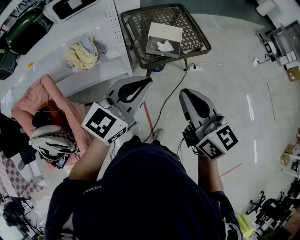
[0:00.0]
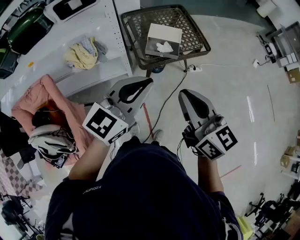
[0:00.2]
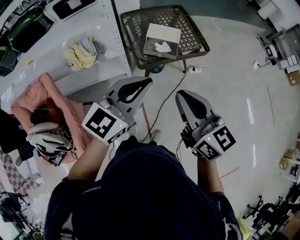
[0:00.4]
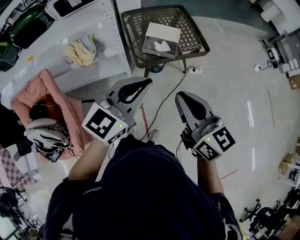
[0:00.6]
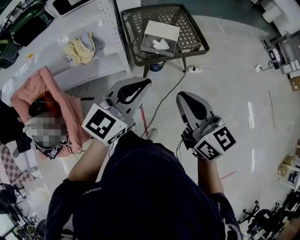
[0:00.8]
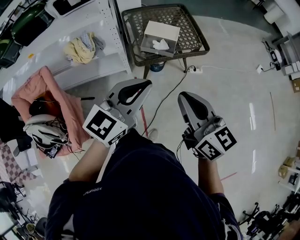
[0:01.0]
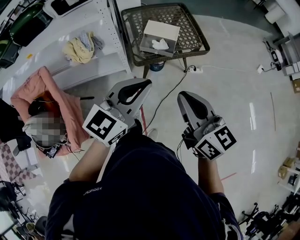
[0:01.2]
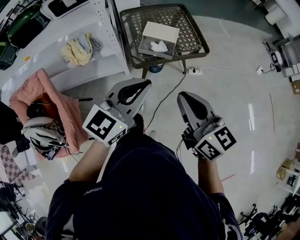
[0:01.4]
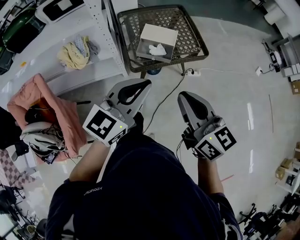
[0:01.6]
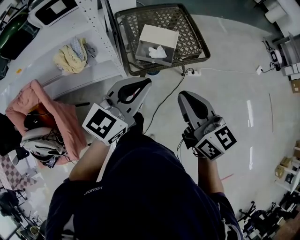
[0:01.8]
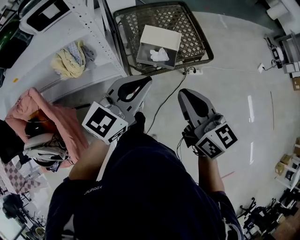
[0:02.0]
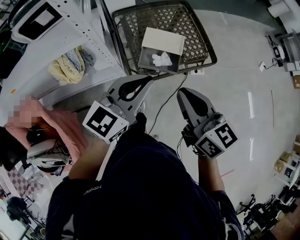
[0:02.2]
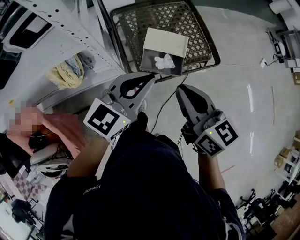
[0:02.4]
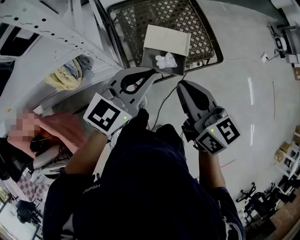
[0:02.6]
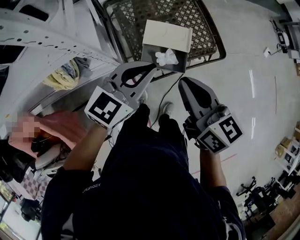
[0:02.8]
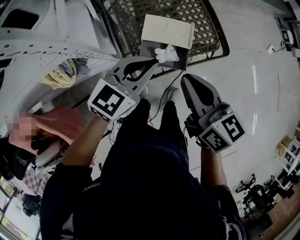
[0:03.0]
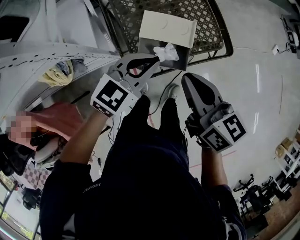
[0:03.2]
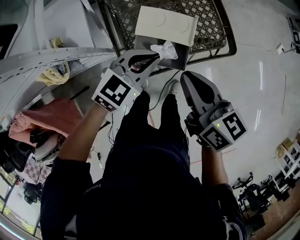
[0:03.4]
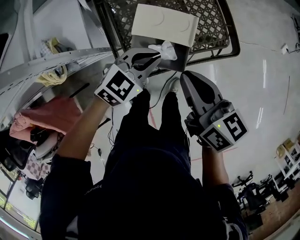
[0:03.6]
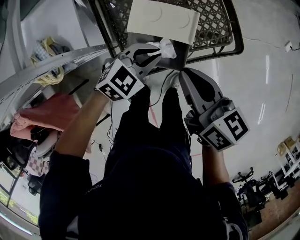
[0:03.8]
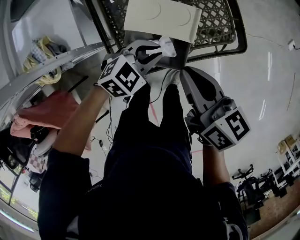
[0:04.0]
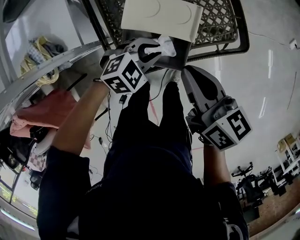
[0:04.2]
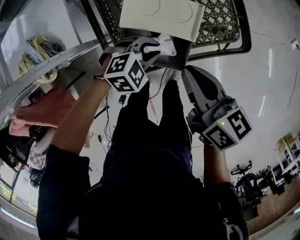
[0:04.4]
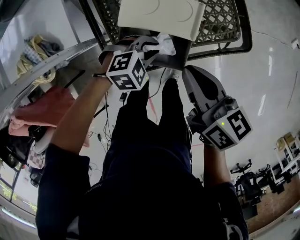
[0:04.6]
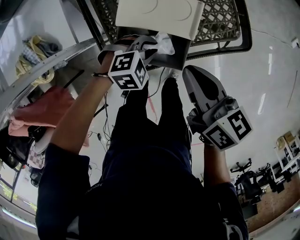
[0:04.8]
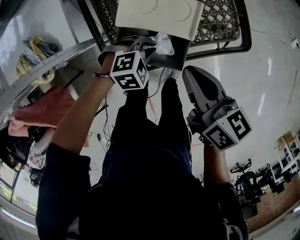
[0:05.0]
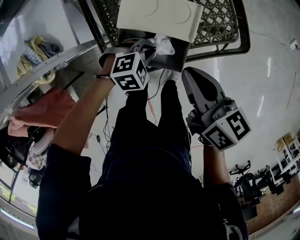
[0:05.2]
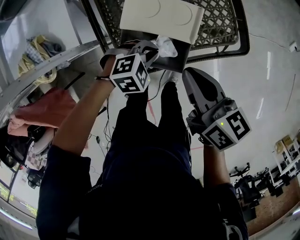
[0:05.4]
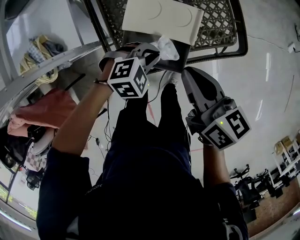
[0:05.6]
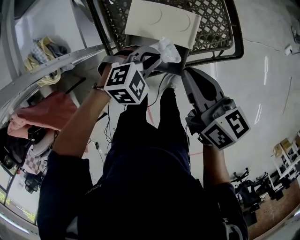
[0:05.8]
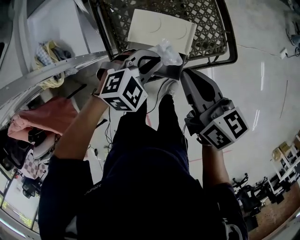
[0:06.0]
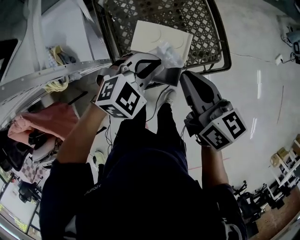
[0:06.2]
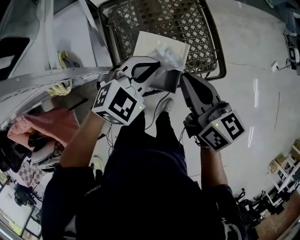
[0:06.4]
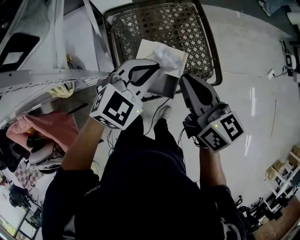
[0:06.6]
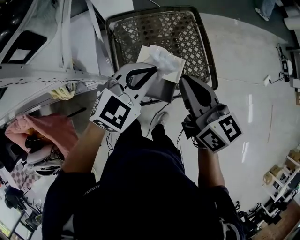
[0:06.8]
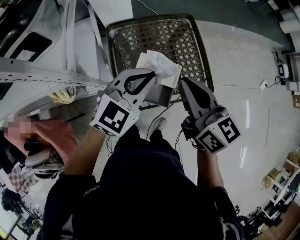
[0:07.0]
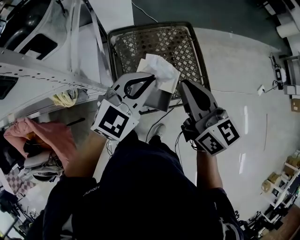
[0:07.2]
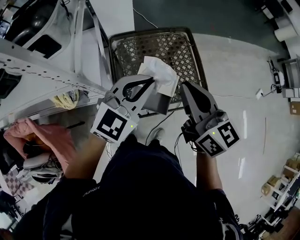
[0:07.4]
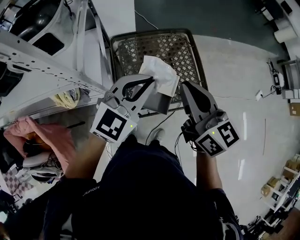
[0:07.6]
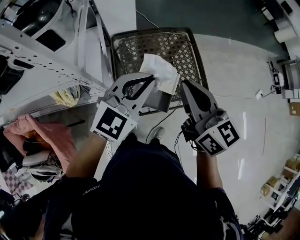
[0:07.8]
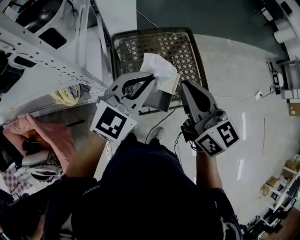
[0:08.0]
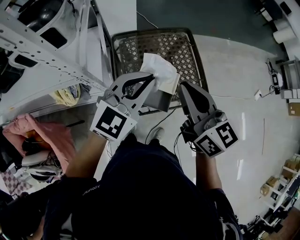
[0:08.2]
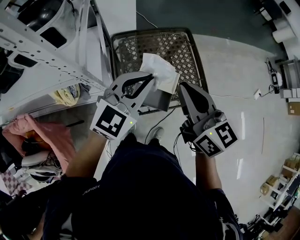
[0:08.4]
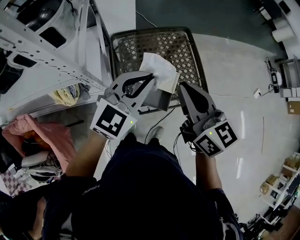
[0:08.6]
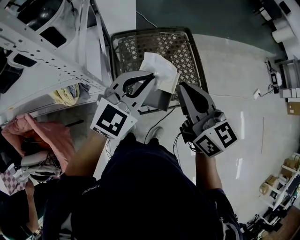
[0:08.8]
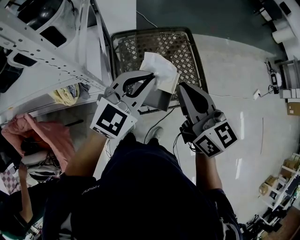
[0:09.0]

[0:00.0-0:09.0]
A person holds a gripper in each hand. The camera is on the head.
0:00.0 to 0:01.6: The grippers both shift to the right and forward by some 10 cm.
0:01.6 to 0:03.0: The left gripper heads forward and downward, covering roughly 35 cm. The right gripper shifts about 30 cm forward.
0:03.0 to 0:04.4: The right gripper shifts about 20 cm downward and forward. The left gripper is displaced downward by roughly 25 cm, and points its fingers approximately 40 degrees further downward.
0:04.4 to 0:06.0: The left gripper is displaced upward by some 10 cm, while the right gripper goes approximately 5 cm upward.
0:06.0 to 0:07.6: Both grippers travel together upward, approximately 25 cm. The left gripper points its fingers approximately 30 degrees further upward. Meanwhile the right gripper swivels some 30 degrees.
0:07.6 to 0:09.0: The grippers move only a little.

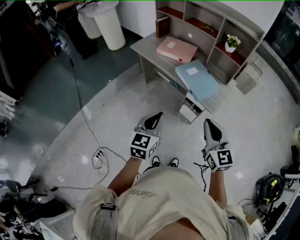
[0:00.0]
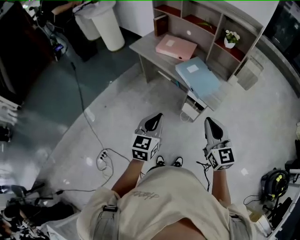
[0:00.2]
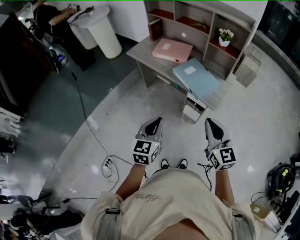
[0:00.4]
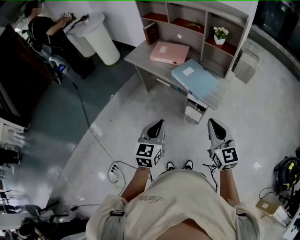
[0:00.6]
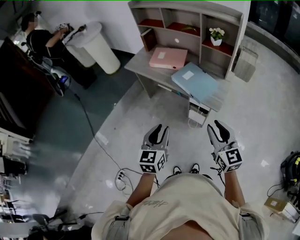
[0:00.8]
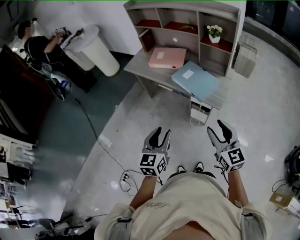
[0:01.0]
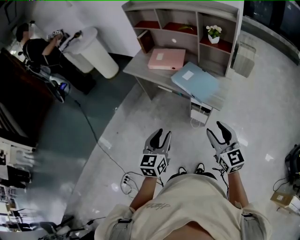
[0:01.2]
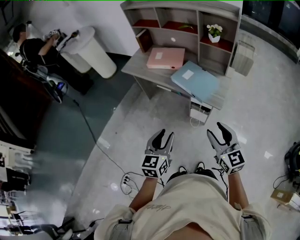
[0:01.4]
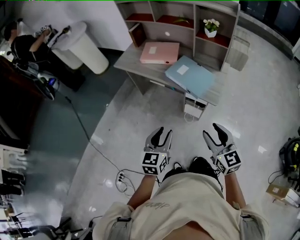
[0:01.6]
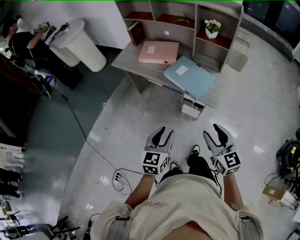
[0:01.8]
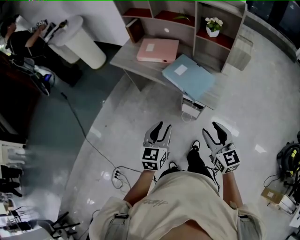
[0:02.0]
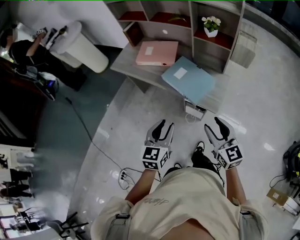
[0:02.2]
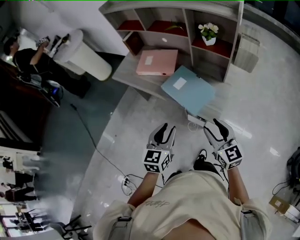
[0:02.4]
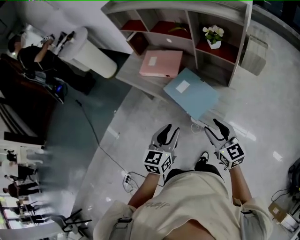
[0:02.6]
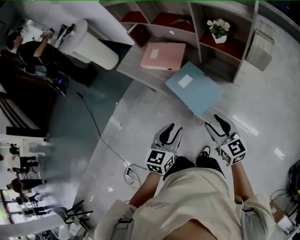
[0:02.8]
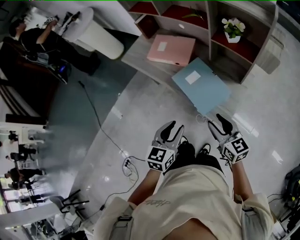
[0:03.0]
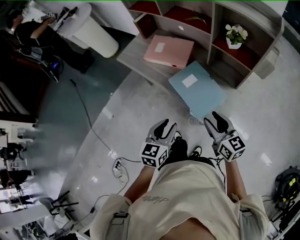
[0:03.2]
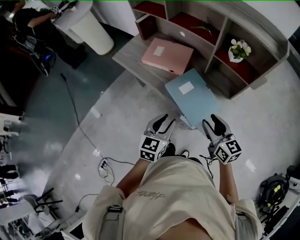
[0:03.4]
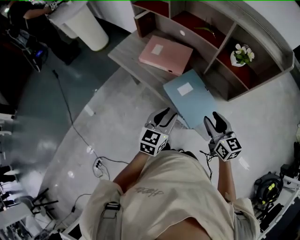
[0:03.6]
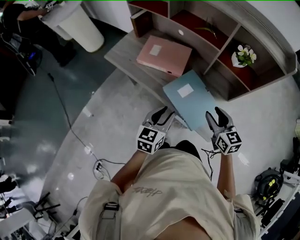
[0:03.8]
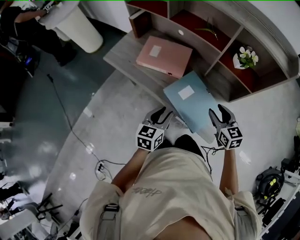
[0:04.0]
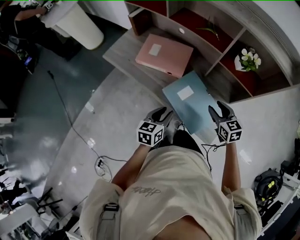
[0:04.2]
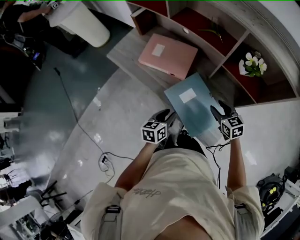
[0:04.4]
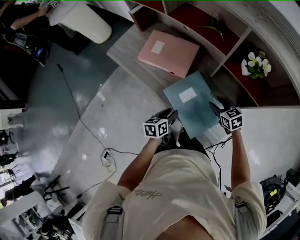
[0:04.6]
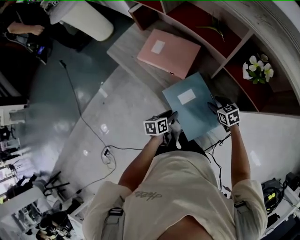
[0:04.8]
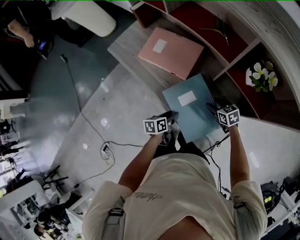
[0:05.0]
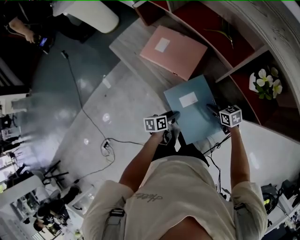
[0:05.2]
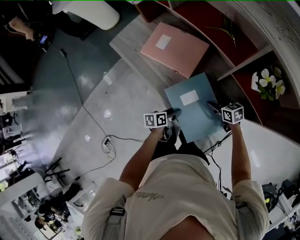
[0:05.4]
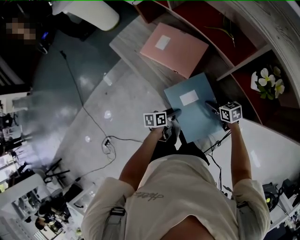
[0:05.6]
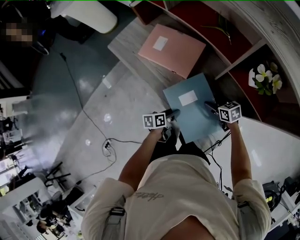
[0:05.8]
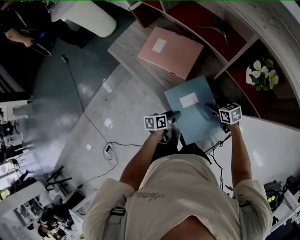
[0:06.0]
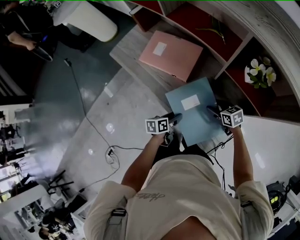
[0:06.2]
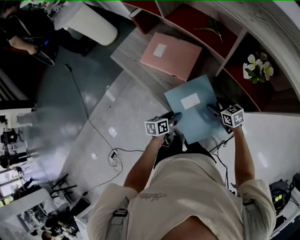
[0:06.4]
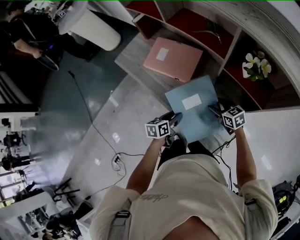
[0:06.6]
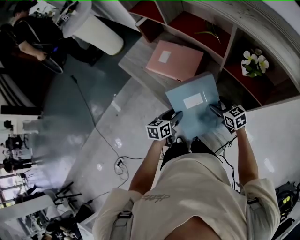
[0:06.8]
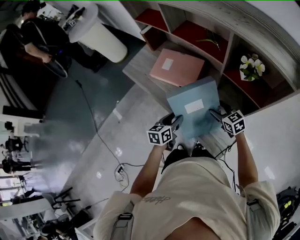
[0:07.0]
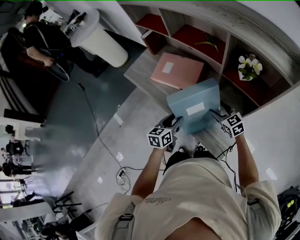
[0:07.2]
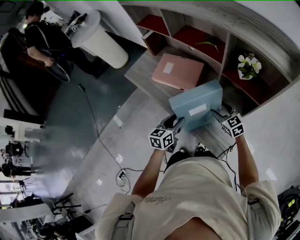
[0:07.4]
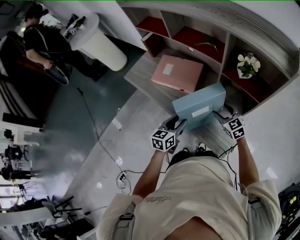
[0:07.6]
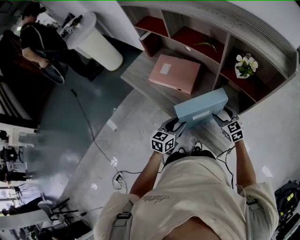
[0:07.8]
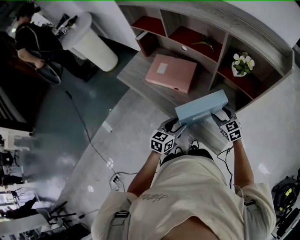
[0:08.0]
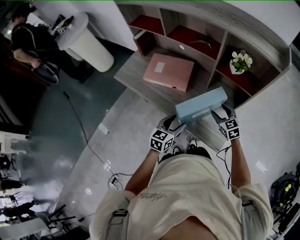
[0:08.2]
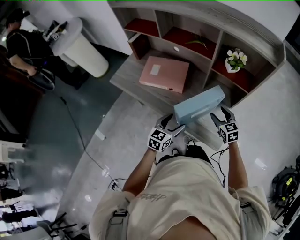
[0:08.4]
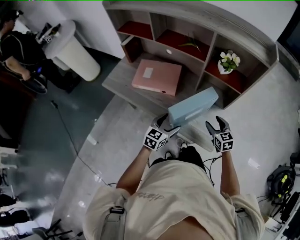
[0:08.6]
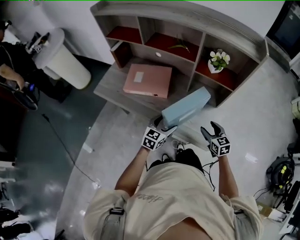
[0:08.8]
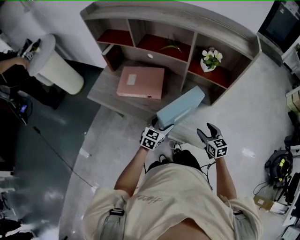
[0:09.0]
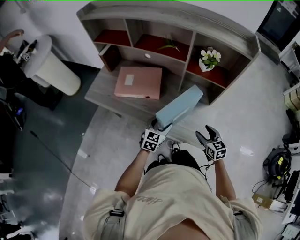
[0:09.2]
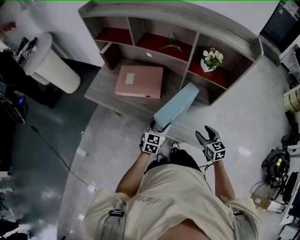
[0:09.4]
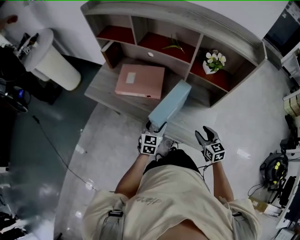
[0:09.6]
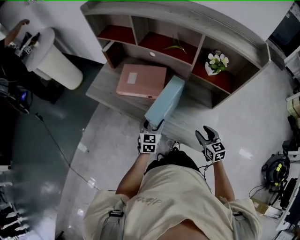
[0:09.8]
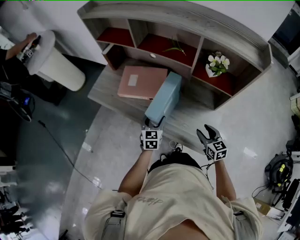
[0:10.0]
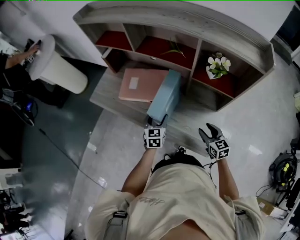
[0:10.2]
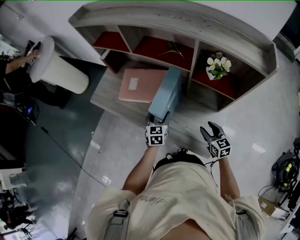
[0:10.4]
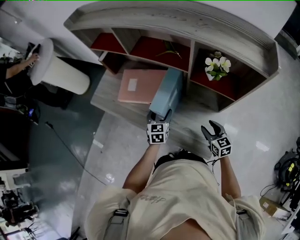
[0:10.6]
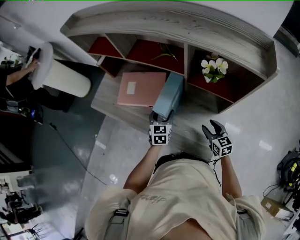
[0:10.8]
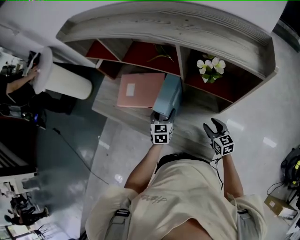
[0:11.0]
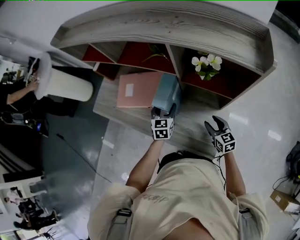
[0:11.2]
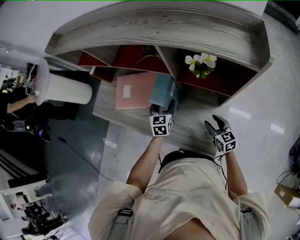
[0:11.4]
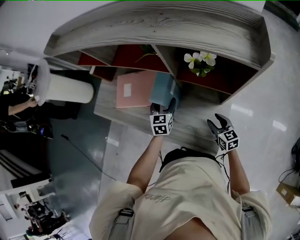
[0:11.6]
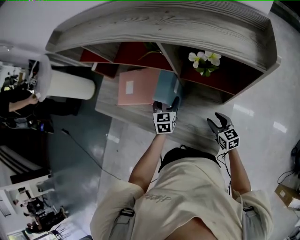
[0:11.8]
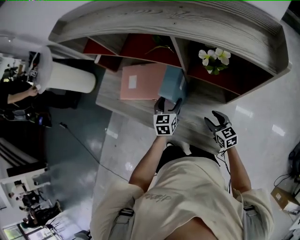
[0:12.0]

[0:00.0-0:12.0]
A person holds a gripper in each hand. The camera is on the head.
0:00.0 to 0:01.6: The grippers both shift downward by some 5 cm. The right gripper opens up. The left gripper opens.
0:01.6 to 0:03.0: Both grippers travel together forward and to the right, about 25 cm. The right gripper turns by roughly 20 degrees.
0:03.0 to 0:04.4: The right gripper heads forward, covering some 25 cm, and turns by about 30 degrees, while the left gripper is displaced forward and downward by approximately 25 cm, and swivels some 30 degrees.
0:04.4 to 0:06.0: The left gripper is displaced downward by approximately 15 cm, and changes its angle by some 30 degrees, while the right gripper heads downward and forward, covering approximately 15 cm, and swivels roughly 30 degrees.
0:06.0 to 0:07.6: The grippers both shift upward by roughly 15 cm. The right gripper swivels about 40 degrees. Meanwhile the left gripper rotates roughly 40 degrees.
0:07.6 to 0:09.0: The left gripper changes place by about 5 cm, swivels about 30 degrees, and opens its fingers, while the right gripper is displaced backward and to the right by roughly 15 cm, and changes its angle by some 30 degrees.
0:09.0 to 0:10.4: The left gripper shifts roughly 10 cm forward, and turns by about 30 degrees; the right gripper is displaced forward by about 10 cm.
0:10.4 to 0:12.0: The left gripper is displaced to the right and forward by approximately 10 cm; the right gripper changes place by about 5 cm.

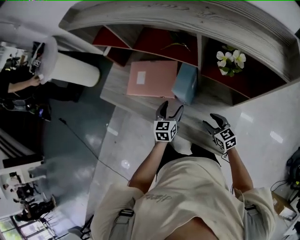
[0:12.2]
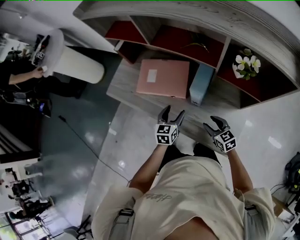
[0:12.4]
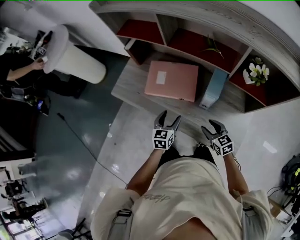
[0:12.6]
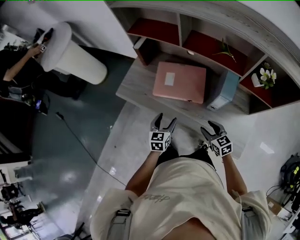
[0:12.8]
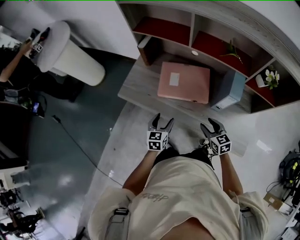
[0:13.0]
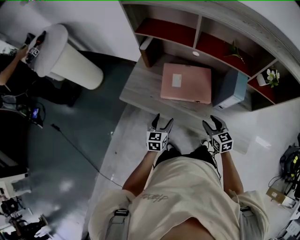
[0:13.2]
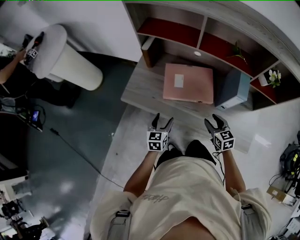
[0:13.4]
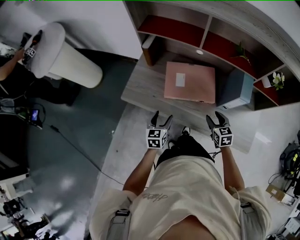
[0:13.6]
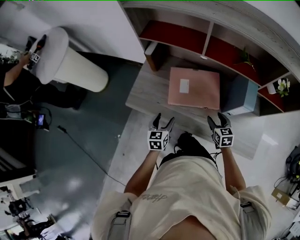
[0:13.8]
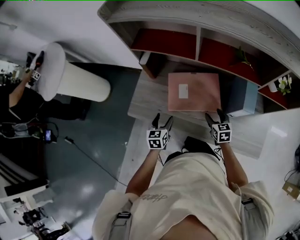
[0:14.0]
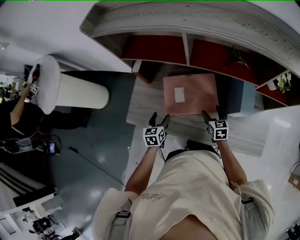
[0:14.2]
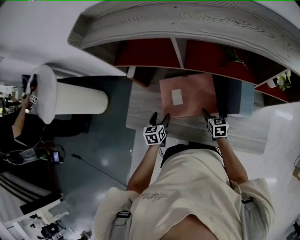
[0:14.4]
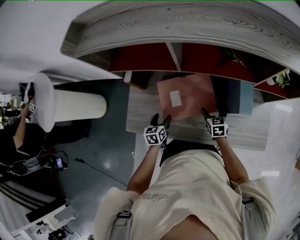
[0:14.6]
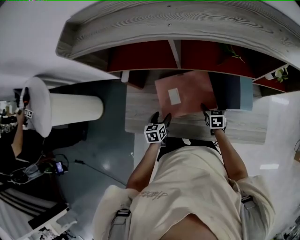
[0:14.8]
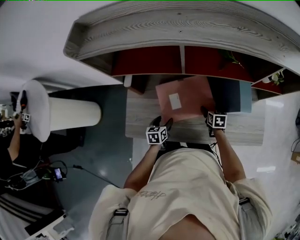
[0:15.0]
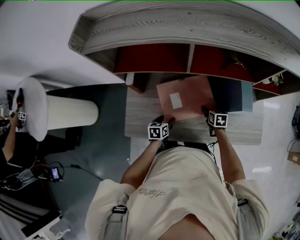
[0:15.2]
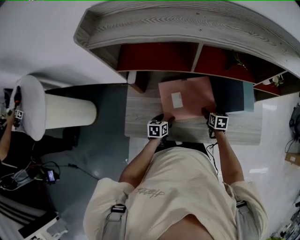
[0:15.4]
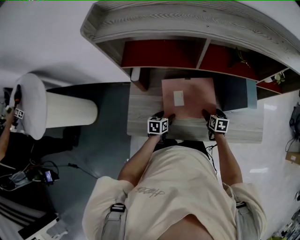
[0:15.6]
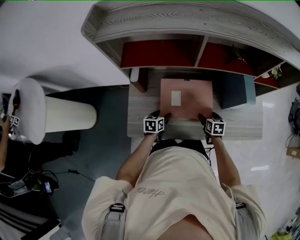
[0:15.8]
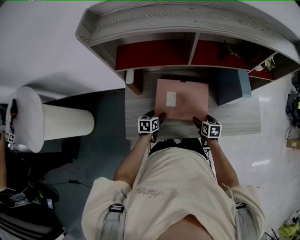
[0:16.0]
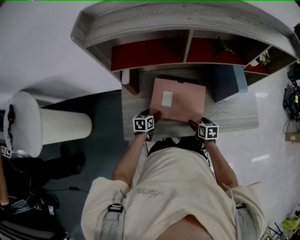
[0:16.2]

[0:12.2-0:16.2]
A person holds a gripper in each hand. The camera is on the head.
0:12.2 to 0:13.6: The grippers both shift to the left by some 25 cm. The right gripper rotates approximately 20 degrees.
0:13.6 to 0:14.8: The right gripper is displaced forward and downward by approximately 15 cm, changes its angle by approximately 30 degrees, and opens up. The left gripper shifts some 15 cm forward.
0:14.8 to 0:16.2: The left gripper goes approximately 5 cm to the left, while the right gripper shifts approximately 15 cm backward and to the left.
